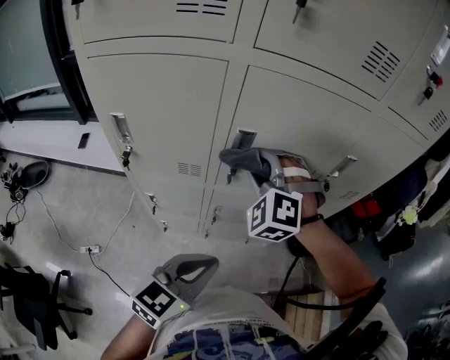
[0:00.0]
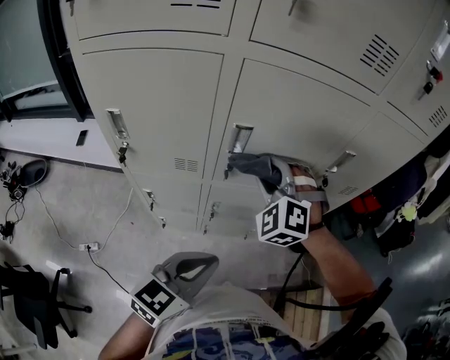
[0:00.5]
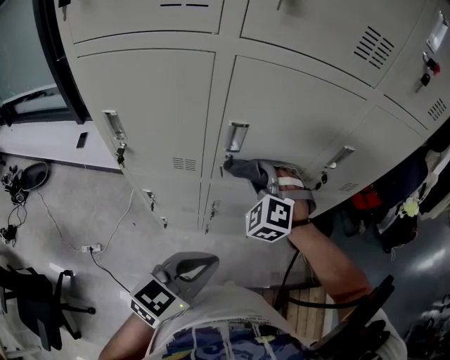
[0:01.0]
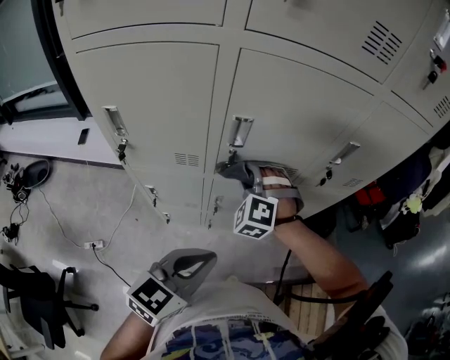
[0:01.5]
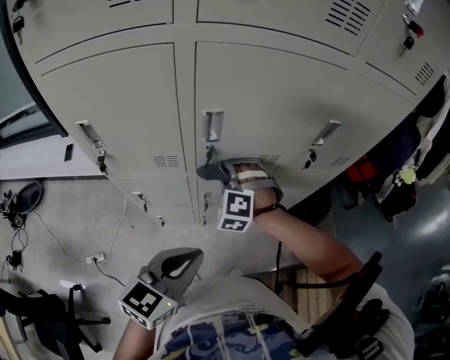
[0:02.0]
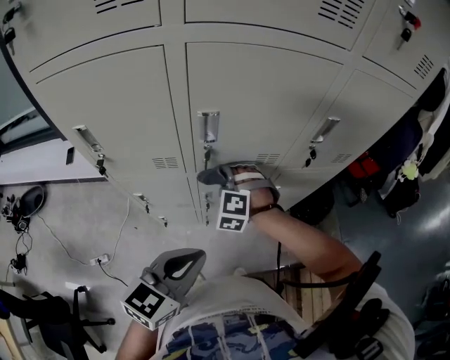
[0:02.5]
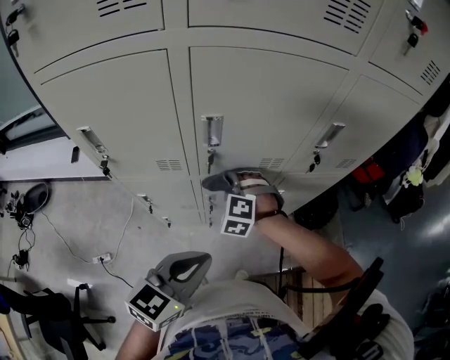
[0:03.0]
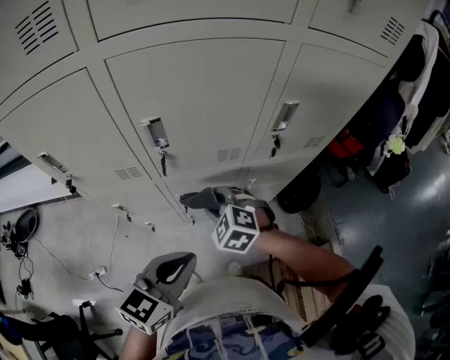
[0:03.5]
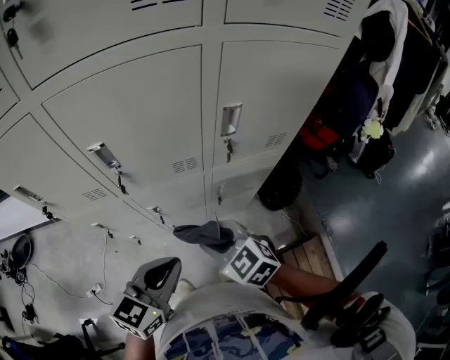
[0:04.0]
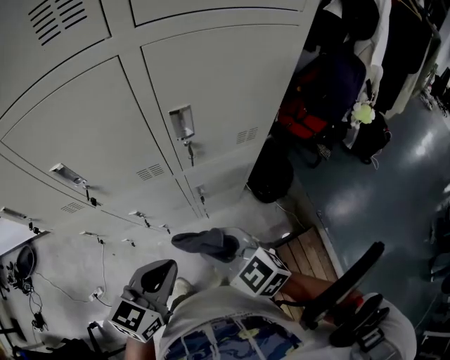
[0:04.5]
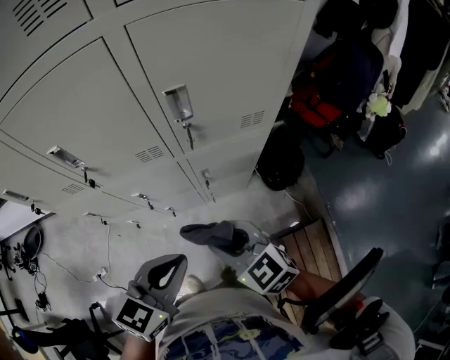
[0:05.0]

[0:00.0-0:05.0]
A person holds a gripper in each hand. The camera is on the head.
0:02.5 to 0:05.0: The left gripper moves some 20 cm.

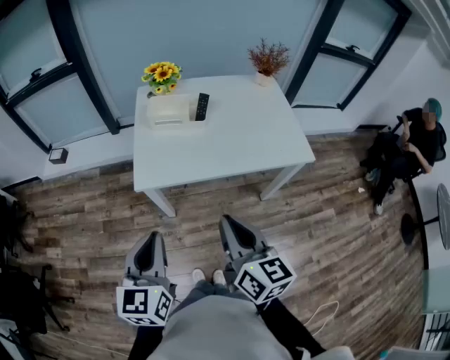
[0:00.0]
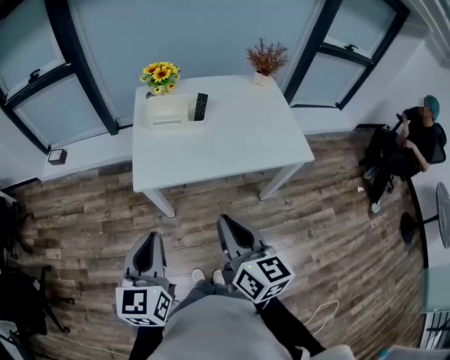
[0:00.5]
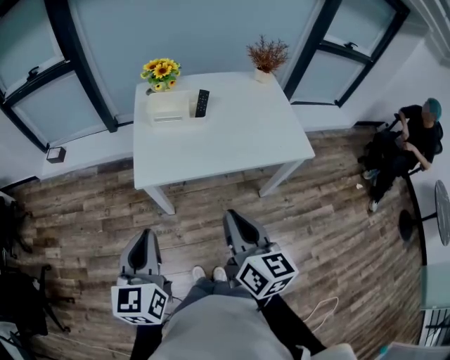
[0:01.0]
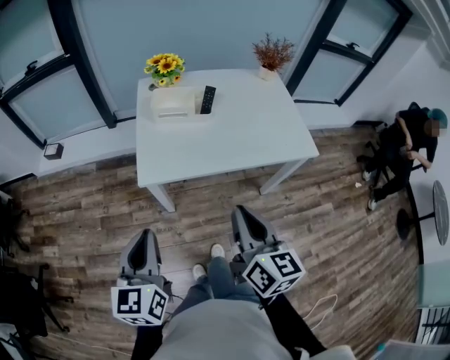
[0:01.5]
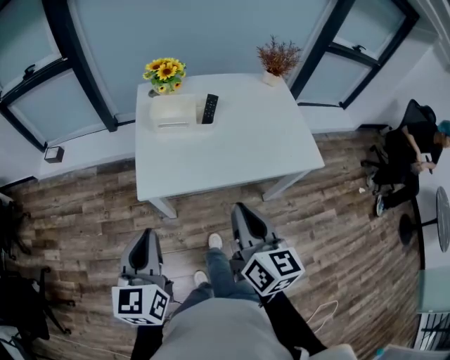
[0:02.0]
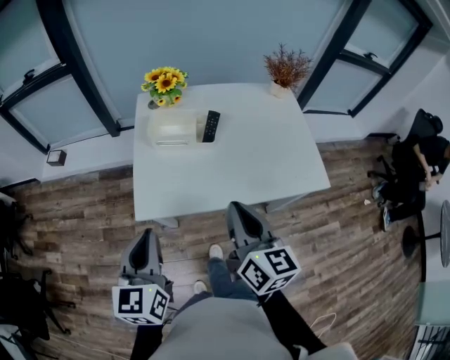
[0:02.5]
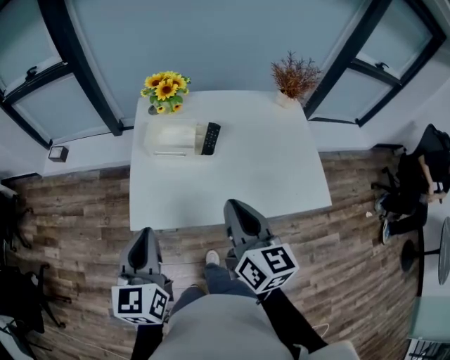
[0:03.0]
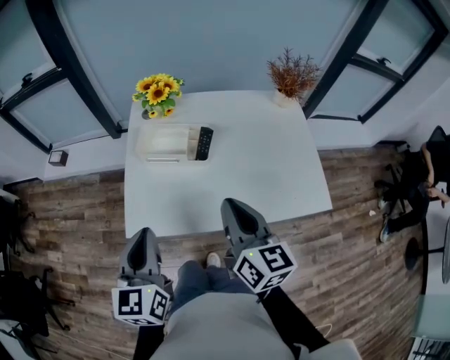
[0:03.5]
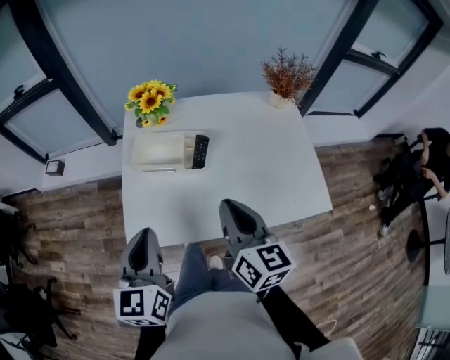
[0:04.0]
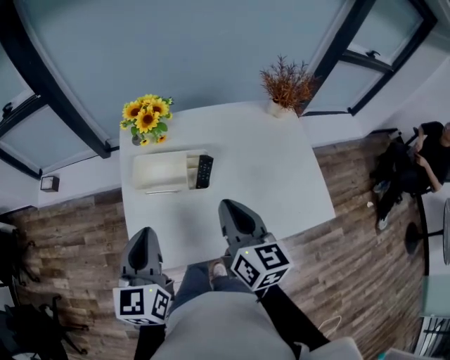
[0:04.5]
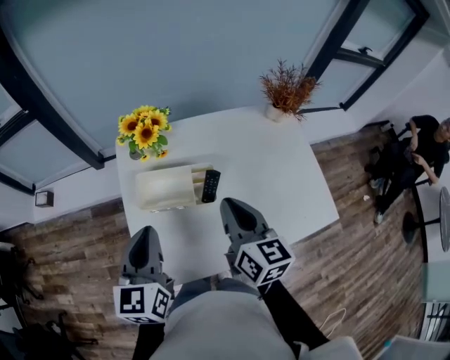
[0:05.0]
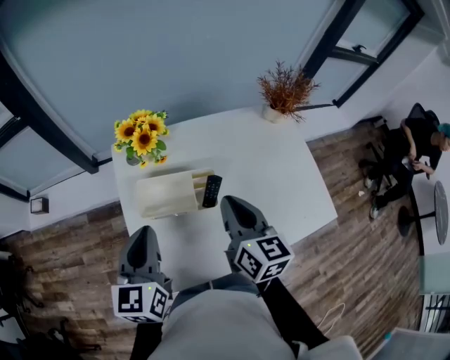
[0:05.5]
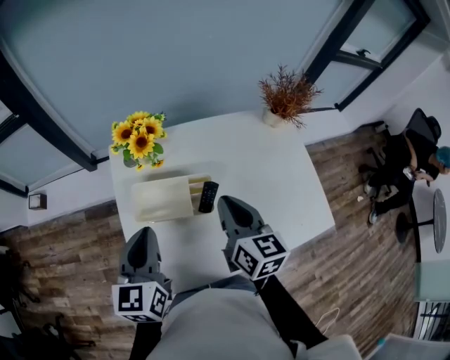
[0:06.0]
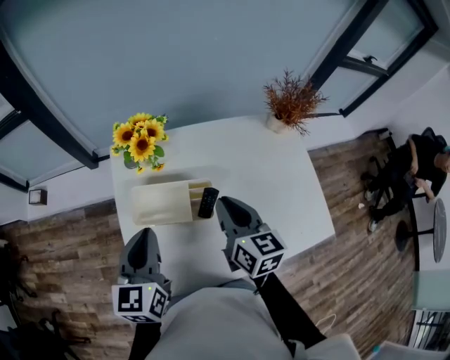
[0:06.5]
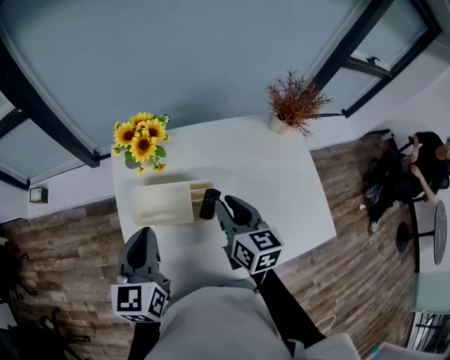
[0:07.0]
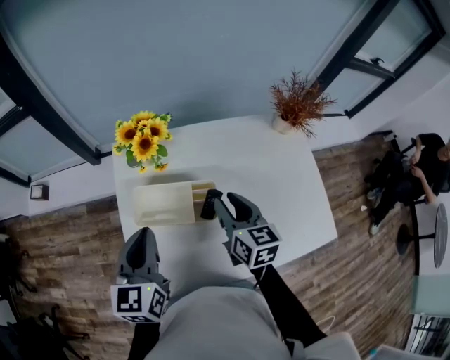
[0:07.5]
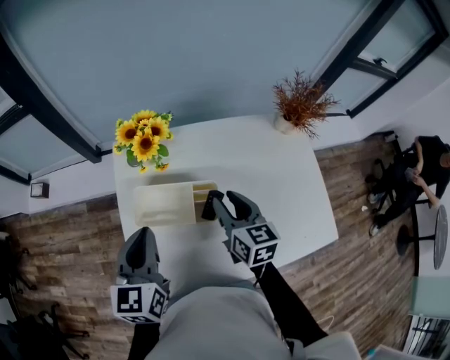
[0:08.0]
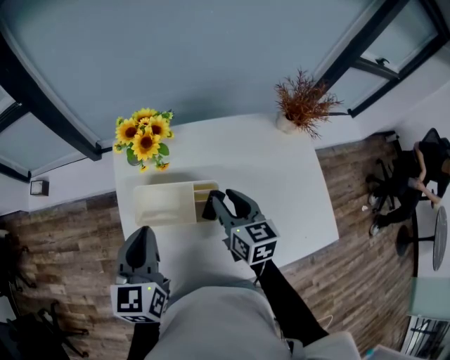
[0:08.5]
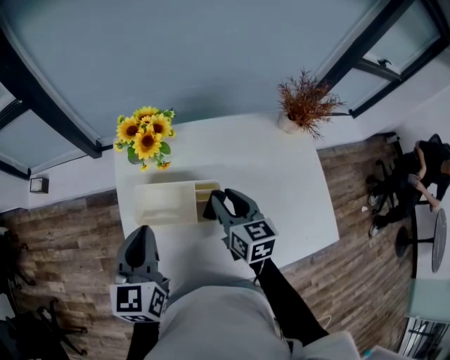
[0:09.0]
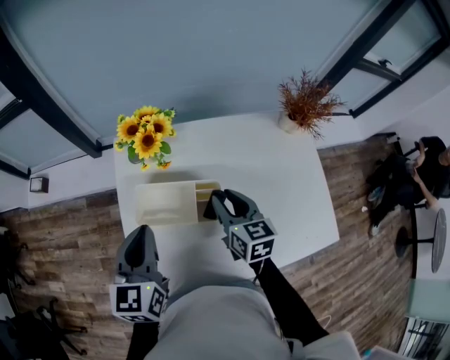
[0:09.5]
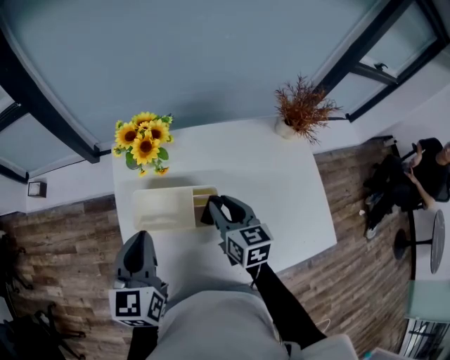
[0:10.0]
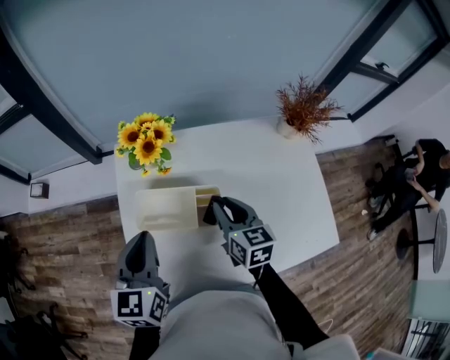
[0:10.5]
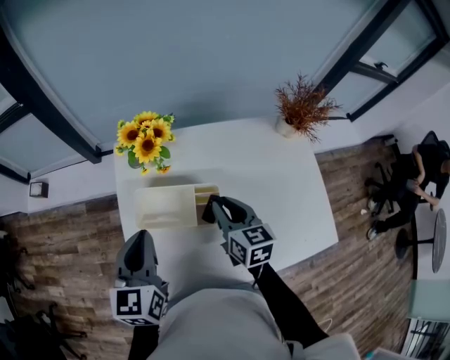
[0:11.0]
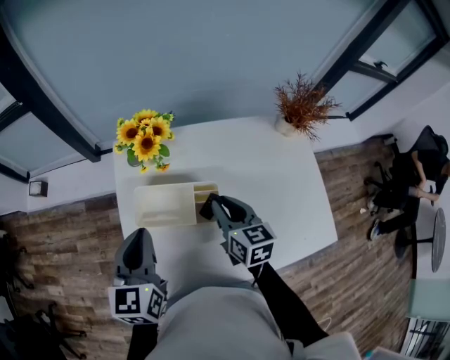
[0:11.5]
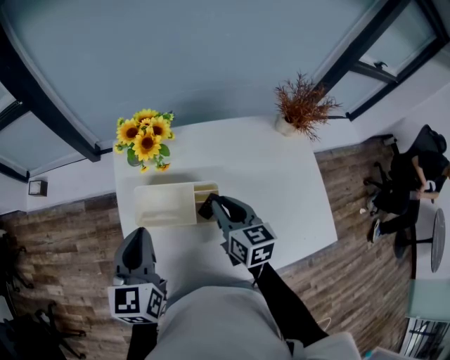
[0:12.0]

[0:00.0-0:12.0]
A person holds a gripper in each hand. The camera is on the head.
0:00.0 to 0:02.0: Both grippers travel together forward, roughly 5 cm.
0:02.0 to 0:04.0: The left gripper travels forward and to the right by about 20 cm, while the right gripper goes approximately 20 cm forward.
0:04.0 to 0:06.0: Both grippers travel together forward, about 20 cm.
0:06.0 to 0:08.0: The right gripper is displaced downward by about 5 cm, and opens.
0:08.0 to 0:10.0: The grippers make only small movements.
0:10.0 to 0:12.0: Both grippers stay put.

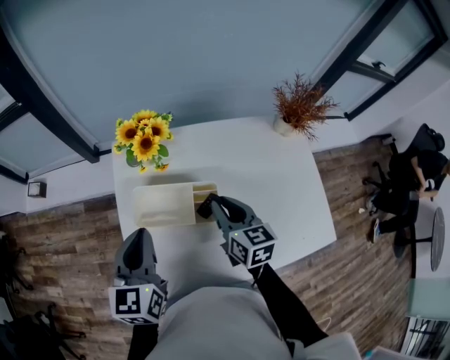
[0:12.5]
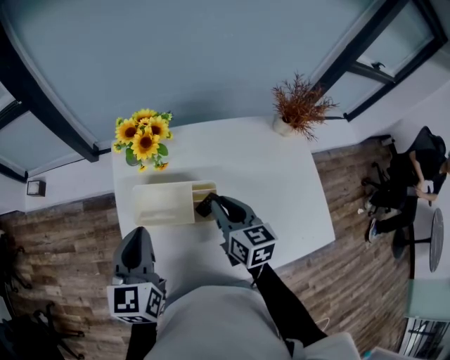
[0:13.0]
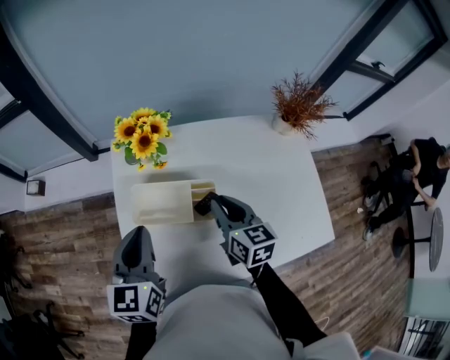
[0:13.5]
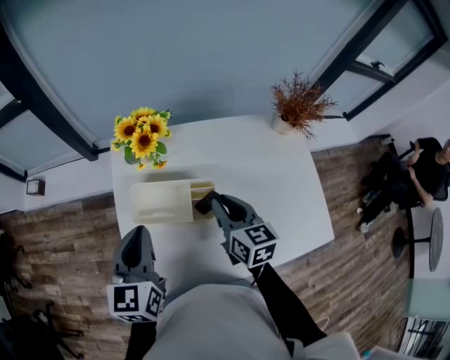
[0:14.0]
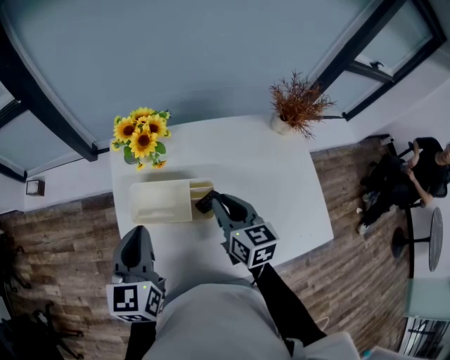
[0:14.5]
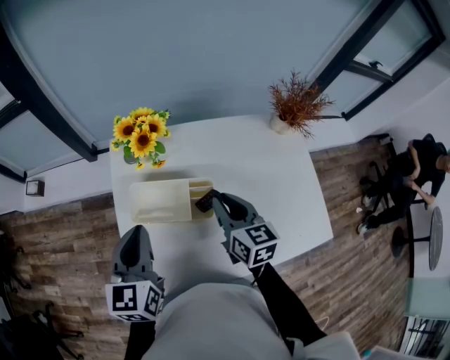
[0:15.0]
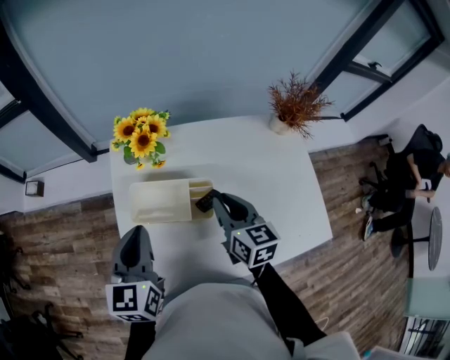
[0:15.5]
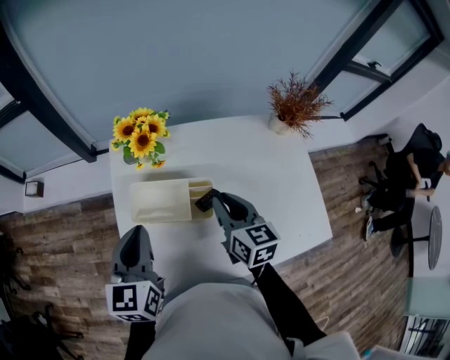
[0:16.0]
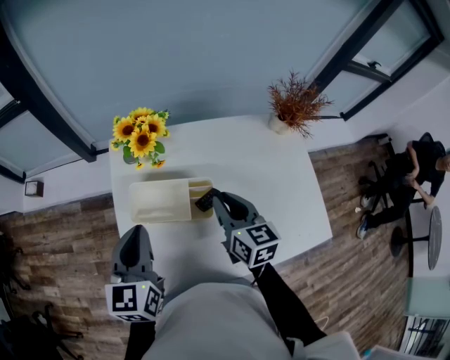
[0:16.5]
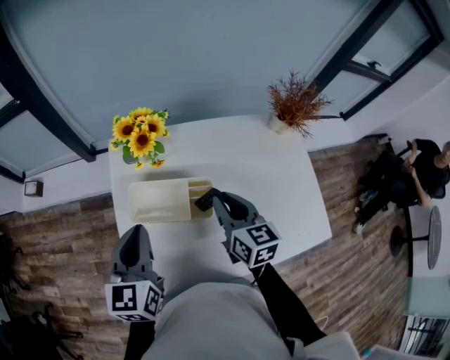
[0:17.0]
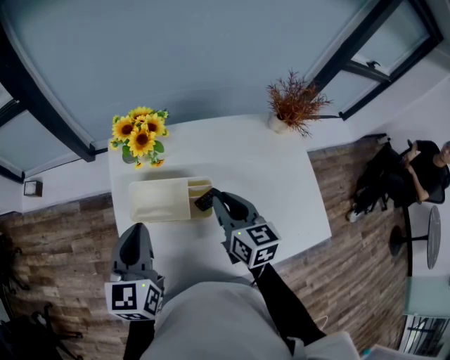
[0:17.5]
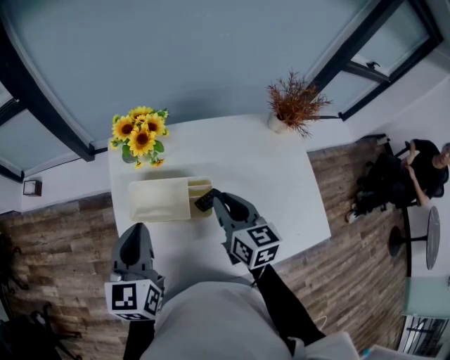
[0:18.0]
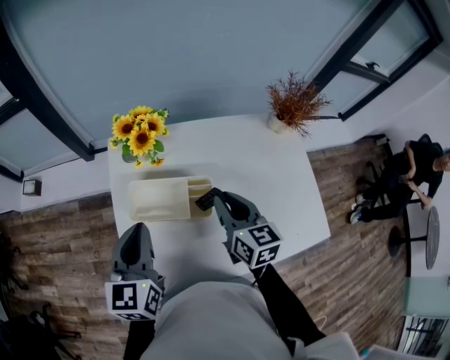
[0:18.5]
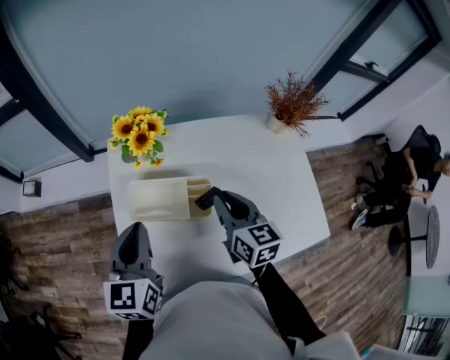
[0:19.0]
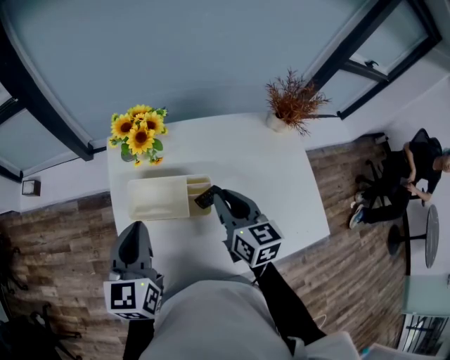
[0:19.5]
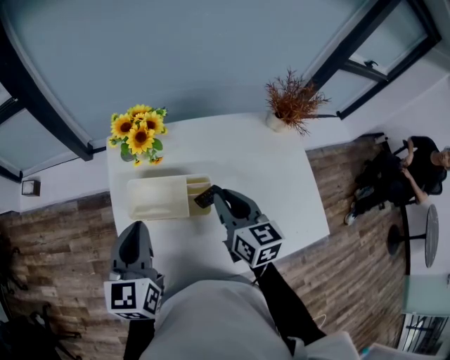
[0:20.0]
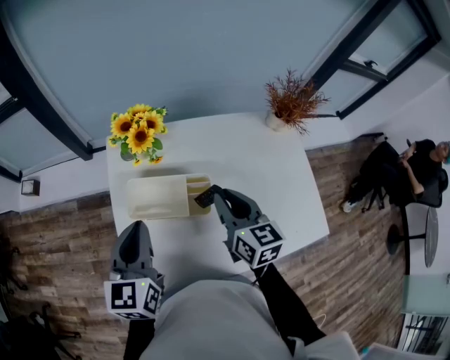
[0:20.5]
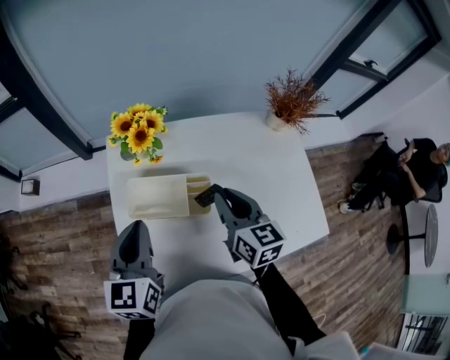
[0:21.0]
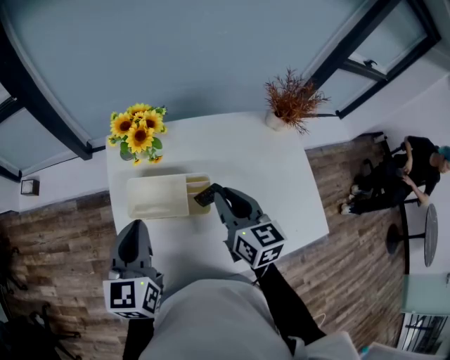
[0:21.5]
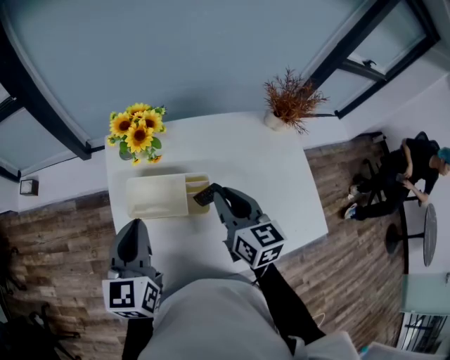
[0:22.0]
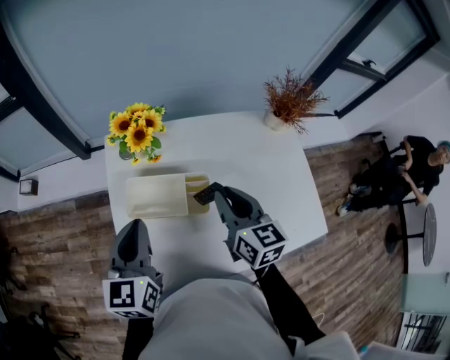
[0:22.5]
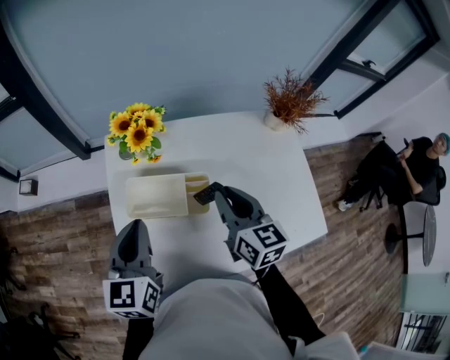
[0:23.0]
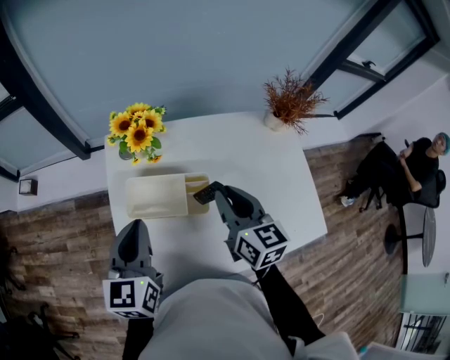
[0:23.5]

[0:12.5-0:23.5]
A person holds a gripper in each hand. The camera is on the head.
0:12.5 to 0:14.5: The grippers move only a little.
0:14.5 to 0:16.0: Neither gripper changes place.
0:16.0 to 0:18.0: Both grippers stay put.
0:18.0 to 0:20.0: Neither gripper changes place.
0:20.0 to 0:21.5: Both grippers stay put.
0:21.5 to 0:23.5: The grippers make only small movements.
